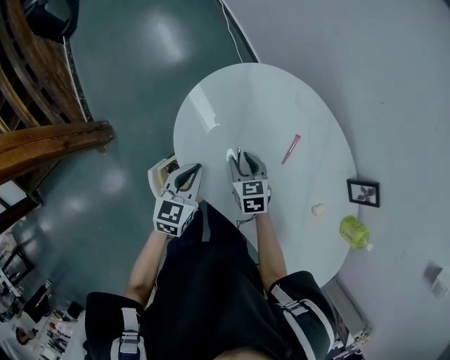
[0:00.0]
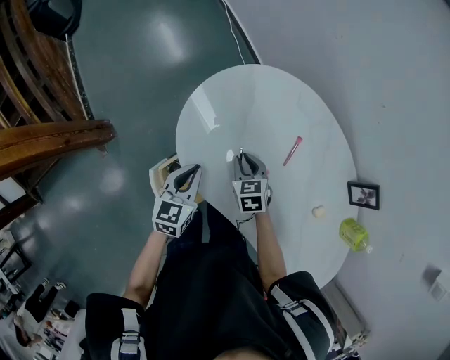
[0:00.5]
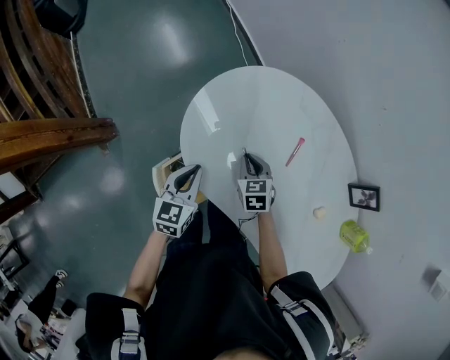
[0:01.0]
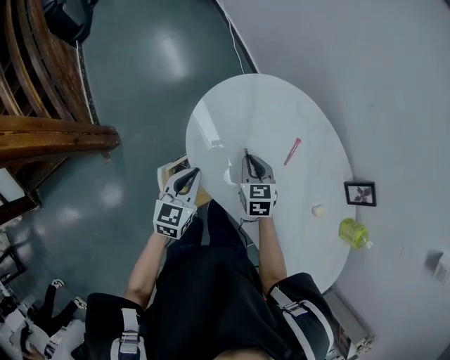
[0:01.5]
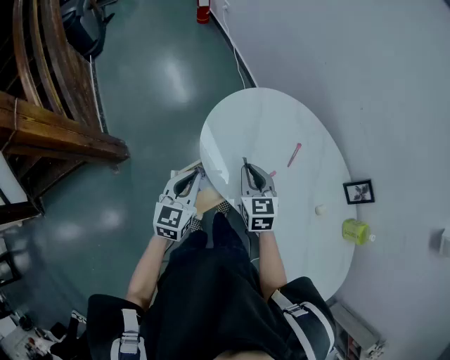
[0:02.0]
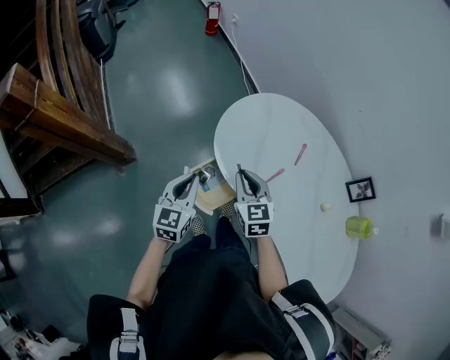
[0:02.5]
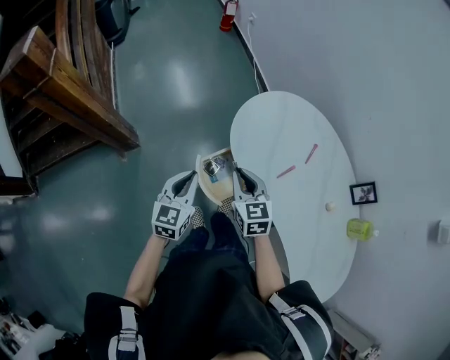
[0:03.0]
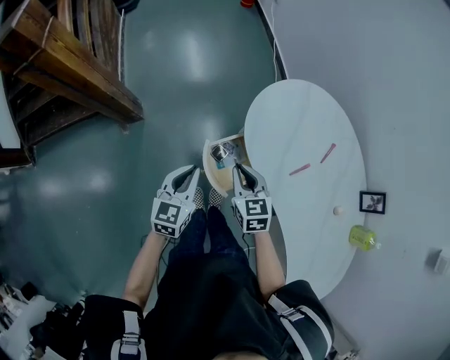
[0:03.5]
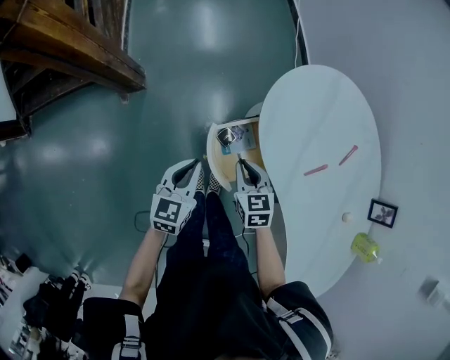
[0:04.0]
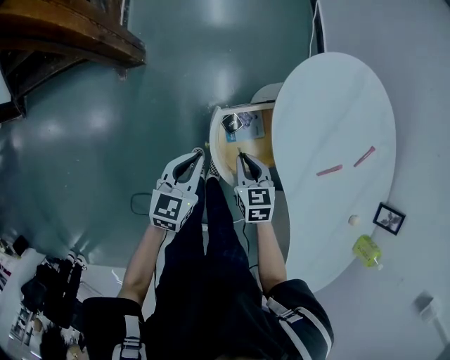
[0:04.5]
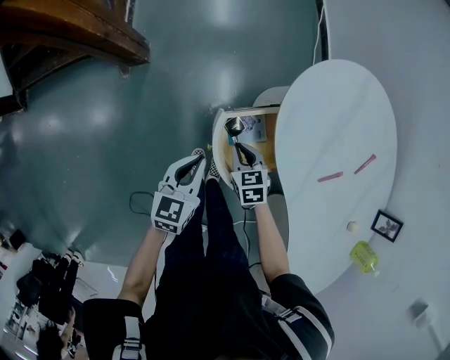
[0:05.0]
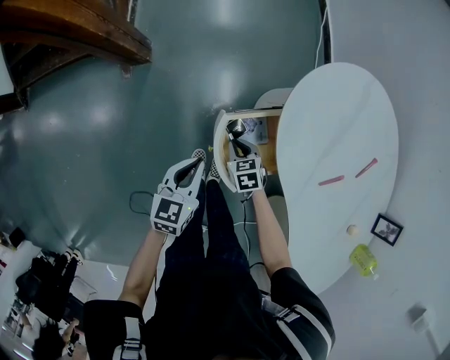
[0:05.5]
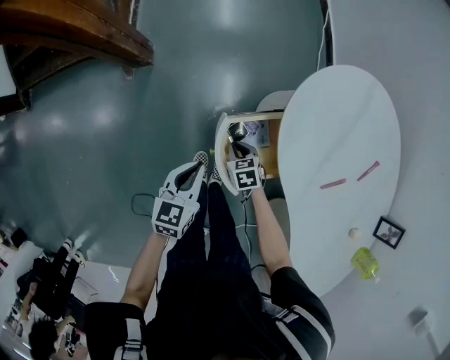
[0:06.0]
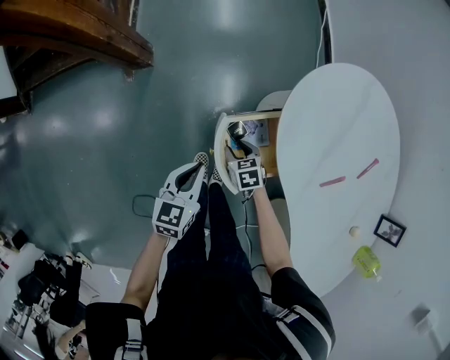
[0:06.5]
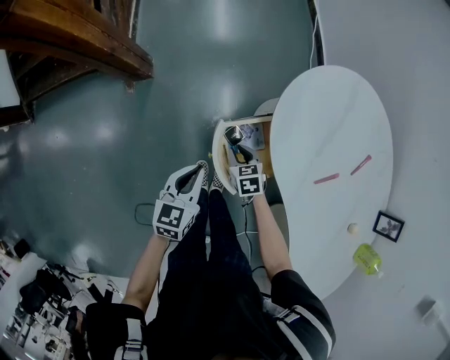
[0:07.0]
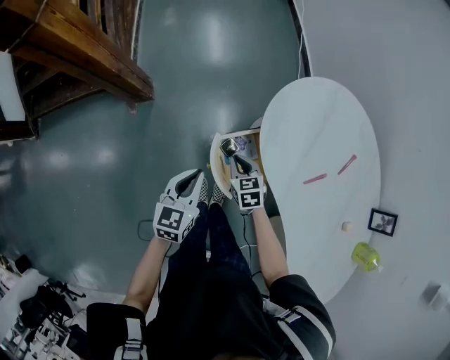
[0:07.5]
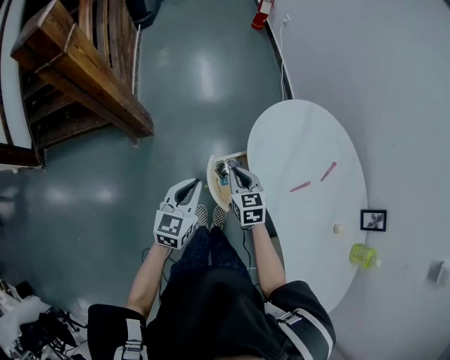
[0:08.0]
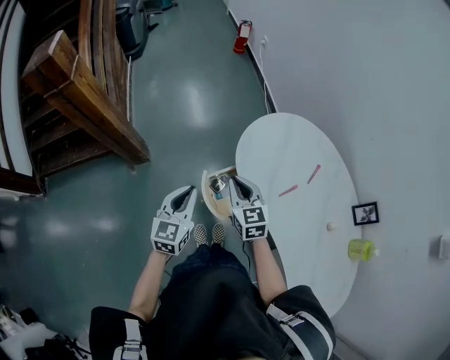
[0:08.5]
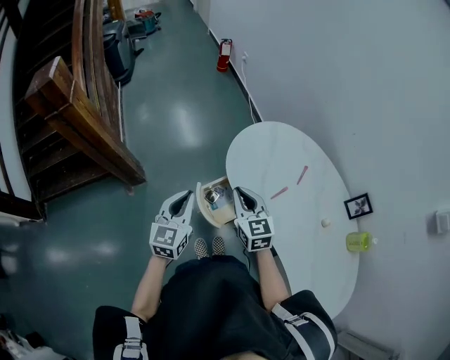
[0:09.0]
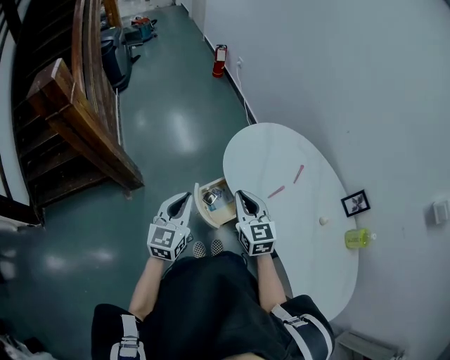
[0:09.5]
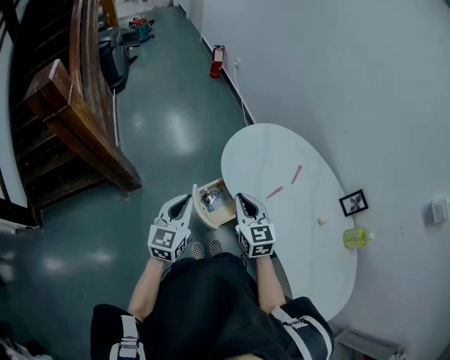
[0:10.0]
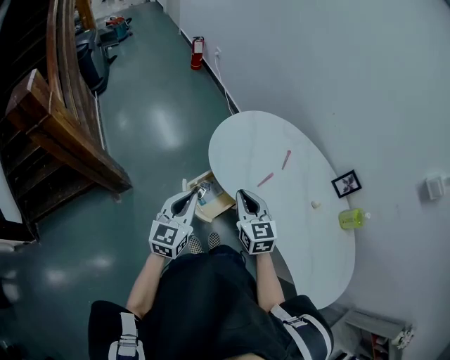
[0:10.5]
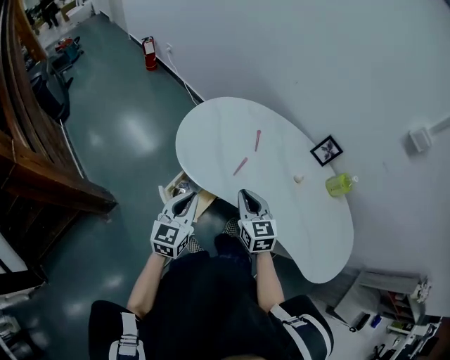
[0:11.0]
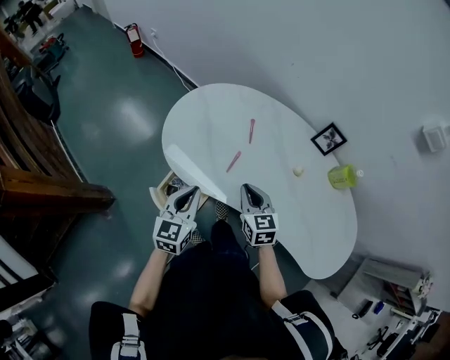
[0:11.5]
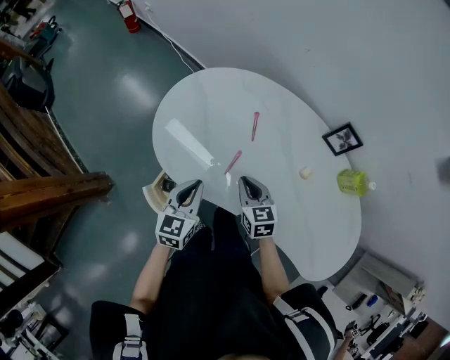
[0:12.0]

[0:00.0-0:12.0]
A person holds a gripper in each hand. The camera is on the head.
0:00.0 to 0:02.0: The left gripper moves upward, backward and to the left, some 15 cm, while the right gripper shifts some 20 cm upward and backward, and closes its fingers.
0:02.0 to 0:04.0: The grippers both shift to the left, downward and backward by some 25 cm. The right gripper turns by about 20 degrees.
0:04.0 to 0:06.0: The right gripper moves downward, about 20 cm, and turns by roughly 20 degrees; the left gripper moves downward, some 10 cm.
0:06.0 to 0:08.0: The left gripper goes about 20 cm upward; the right gripper travels upward by some 30 cm, turns by approximately 30 degrees, and opens, then closes once more.
0:08.0 to 0:10.0: The left gripper goes approximately 10 cm upward. Meanwhile the right gripper shifts roughly 20 cm upward, backward and to the right, and turns by about 20 degrees.
0:10.0 to 0:12.0: The left gripper ends up about 30 cm from where it was, and changes its angle by some 30 degrees, while the right gripper changes place by some 30 cm, and rotates roughly 30 degrees.

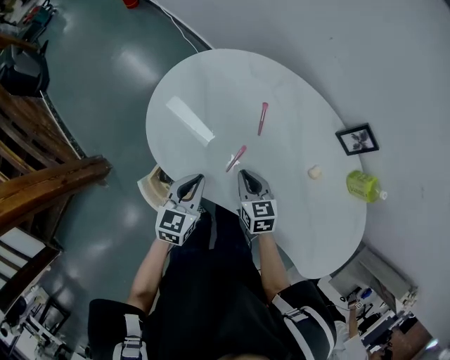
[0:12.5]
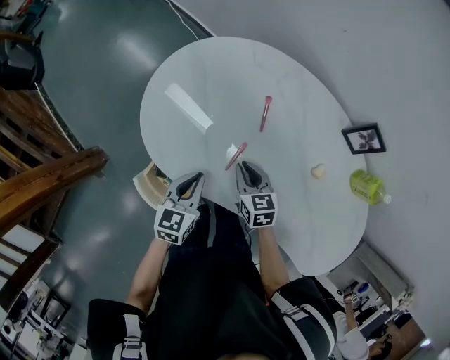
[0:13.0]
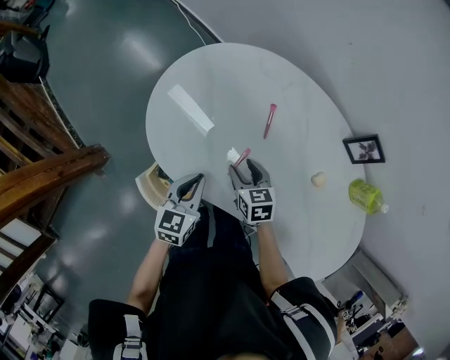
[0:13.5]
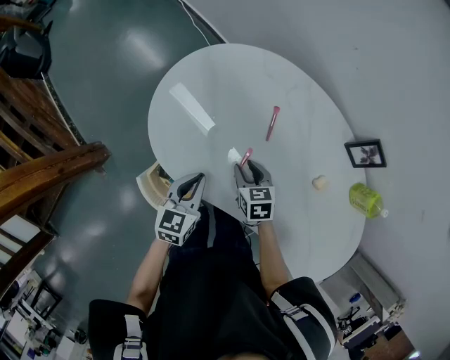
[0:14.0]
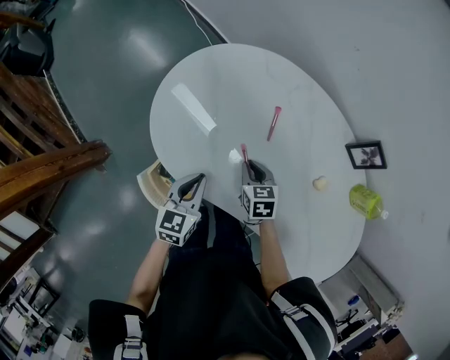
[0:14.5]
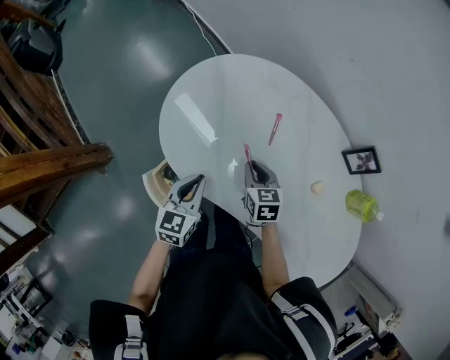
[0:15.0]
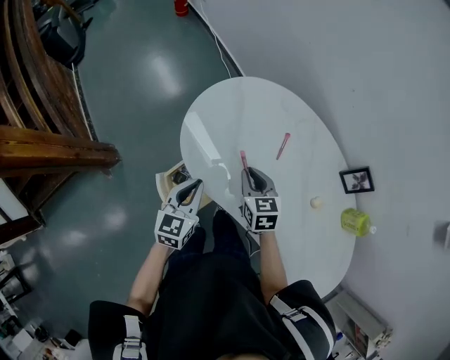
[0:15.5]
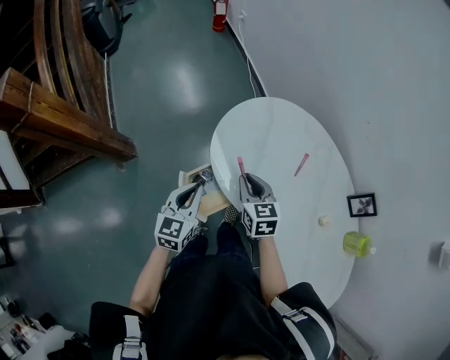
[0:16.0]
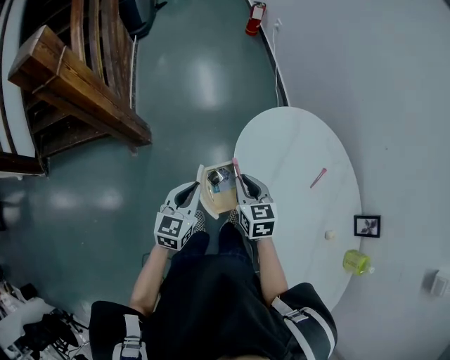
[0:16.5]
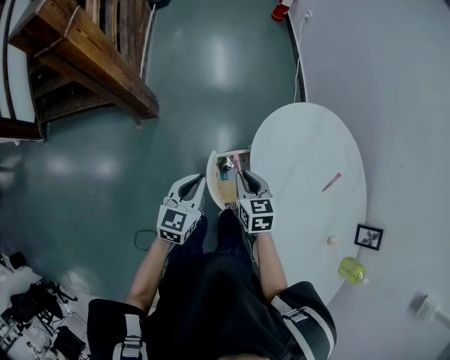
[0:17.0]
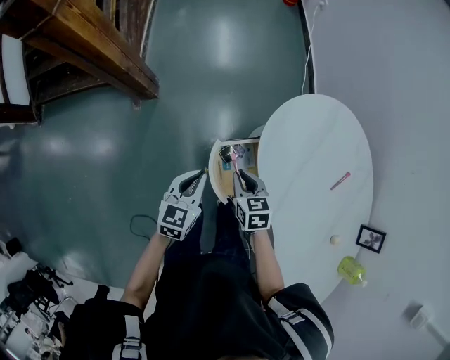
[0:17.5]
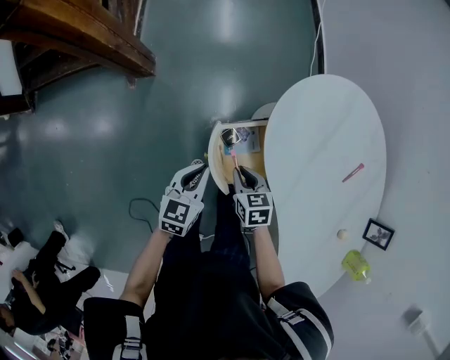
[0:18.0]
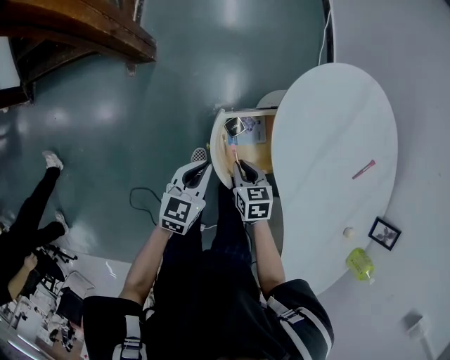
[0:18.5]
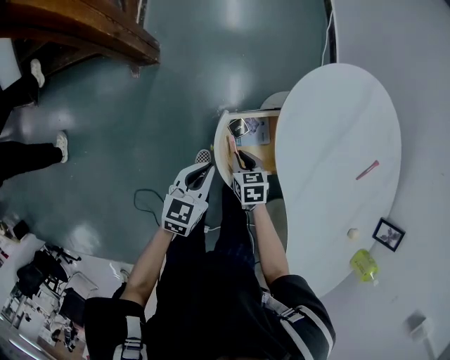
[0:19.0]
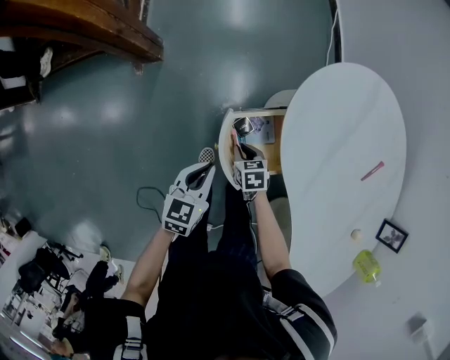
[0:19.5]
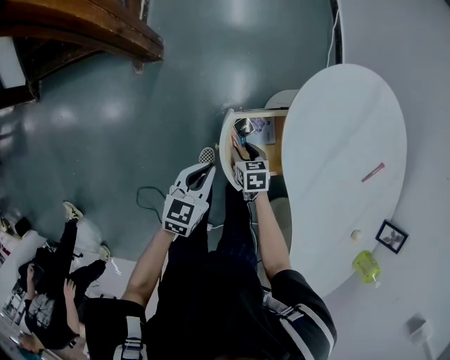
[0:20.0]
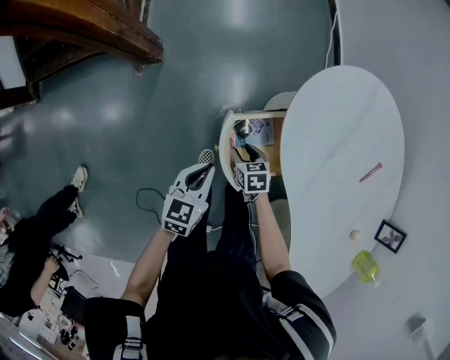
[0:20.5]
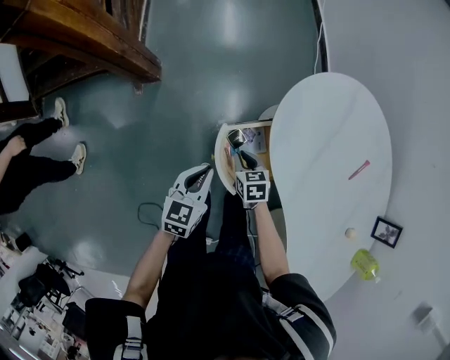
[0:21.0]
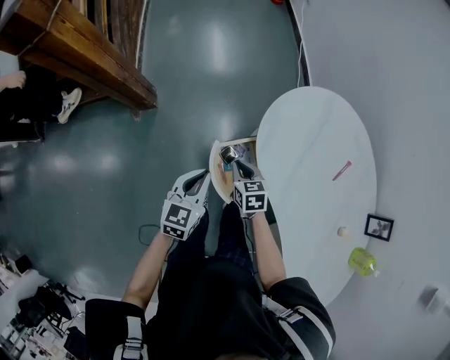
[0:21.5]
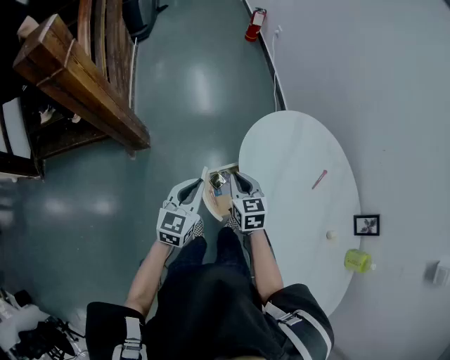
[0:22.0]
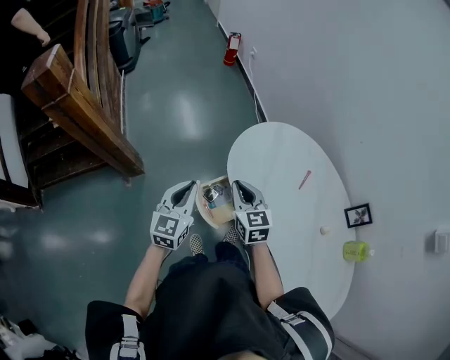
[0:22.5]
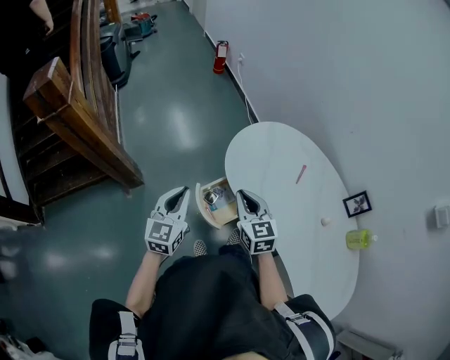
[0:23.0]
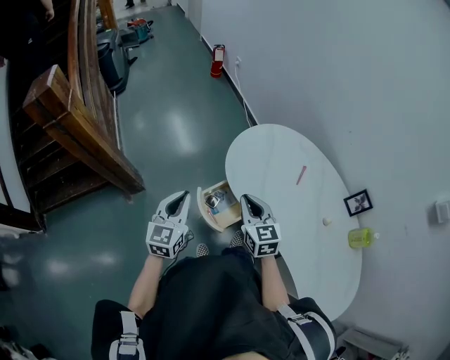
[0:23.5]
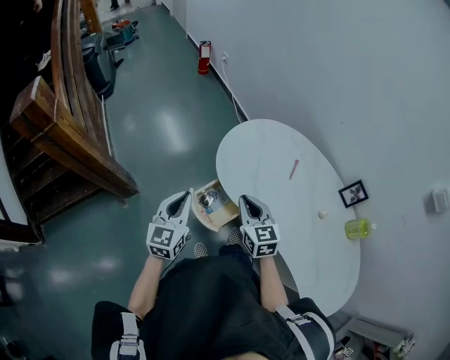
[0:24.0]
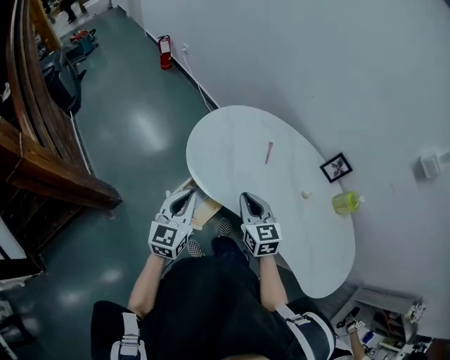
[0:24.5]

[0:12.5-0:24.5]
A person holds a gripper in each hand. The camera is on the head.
0:12.5 to 0:14.5: The right gripper travels downward by some 5 cm, and opens and closes again.
0:14.5 to 0:16.5: The right gripper moves some 35 cm, and turns by approximately 40 degrees, while the left gripper moves roughly 30 cm, and turns by roughly 30 degrees.
0:16.5 to 0:18.5: Both grippers move downward, some 25 cm. The right gripper turns by about 30 degrees.
0:18.5 to 0:20.5: The right gripper shifts roughly 10 cm downward, and opens.
0:20.5 to 0:22.5: Both grippers travel together upward, approximately 35 cm. The left gripper rotates roughly 30 degrees. The right gripper angles its fingers upward, by approximately 40 degrees, and closes.
0:22.5 to 0:24.5: The right gripper heads to the right and backward, covering roughly 15 cm, and changes its angle by some 20 degrees. The left gripper goes some 10 cm to the right, and turns by some 20 degrees.

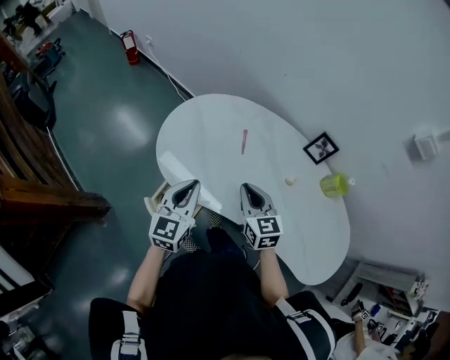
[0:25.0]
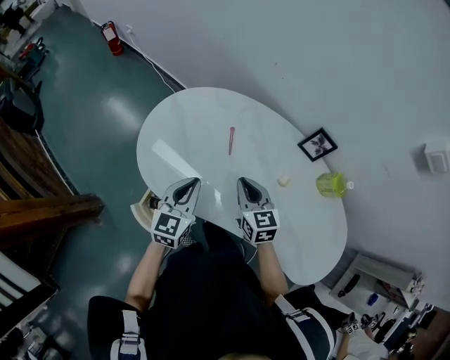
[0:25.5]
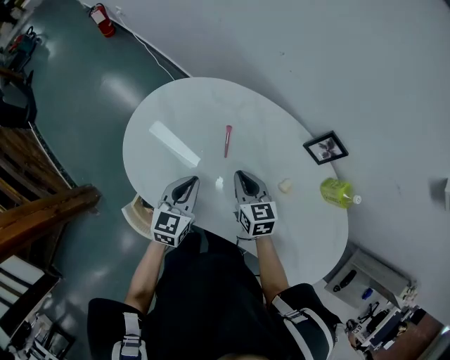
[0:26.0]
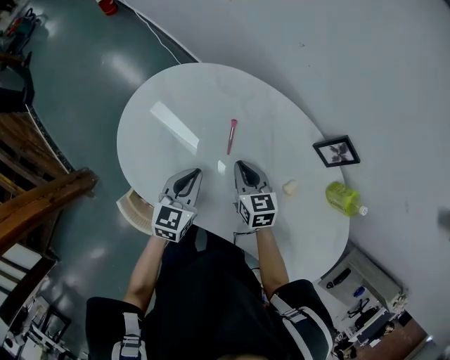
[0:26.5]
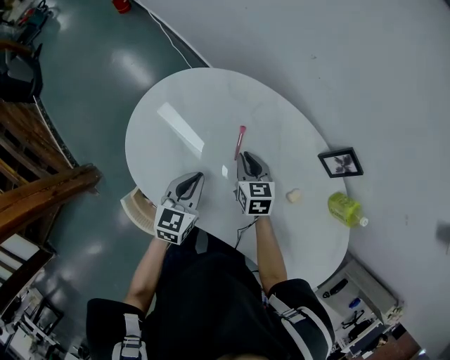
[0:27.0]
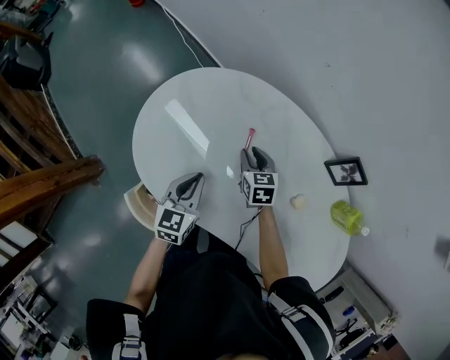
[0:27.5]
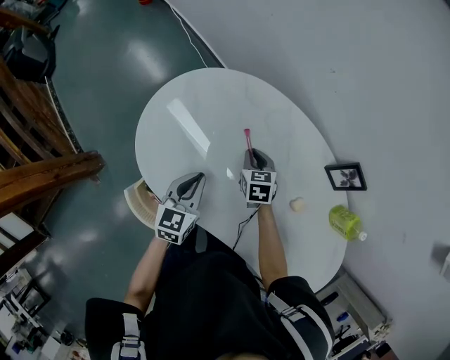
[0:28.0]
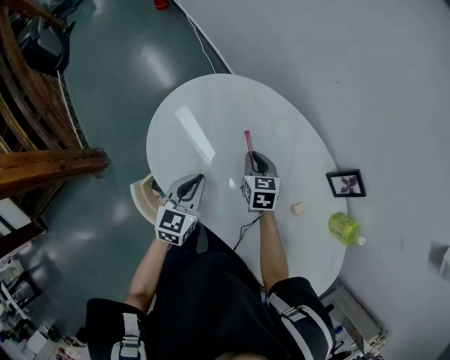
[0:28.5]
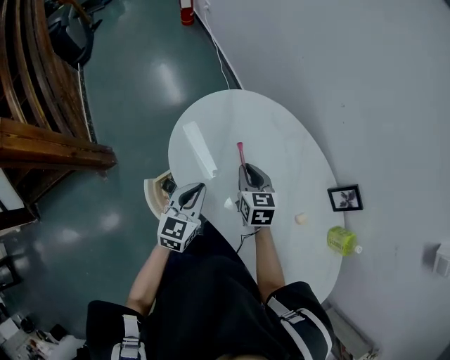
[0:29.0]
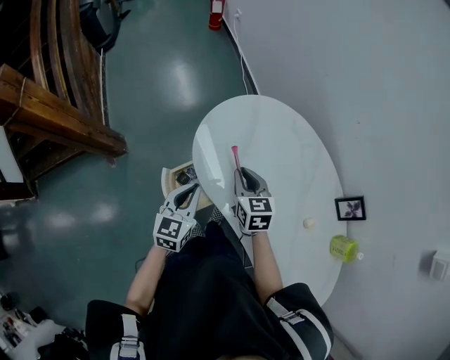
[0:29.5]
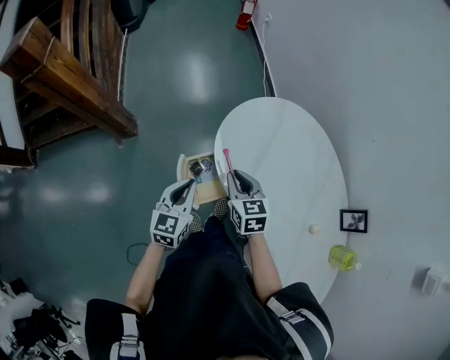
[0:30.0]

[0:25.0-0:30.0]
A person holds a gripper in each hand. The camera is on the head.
0:25.0 to 0:27.5: The left gripper heads downward and forward, covering approximately 25 cm, and rotates about 20 degrees; the right gripper shifts about 35 cm forward and downward, and changes its angle by roughly 20 degrees.
0:27.5 to 0:30.0: The right gripper changes place by approximately 40 cm, and swivels approximately 40 degrees, while the left gripper changes place by roughly 30 cm, and rotates about 30 degrees.
